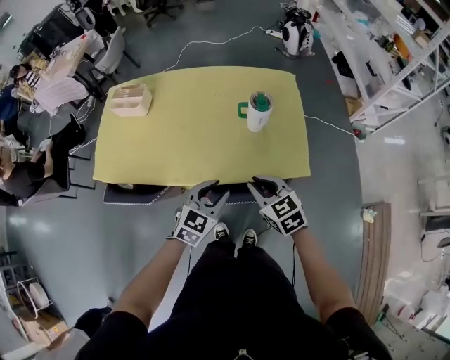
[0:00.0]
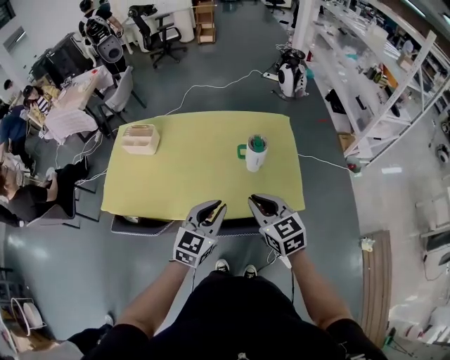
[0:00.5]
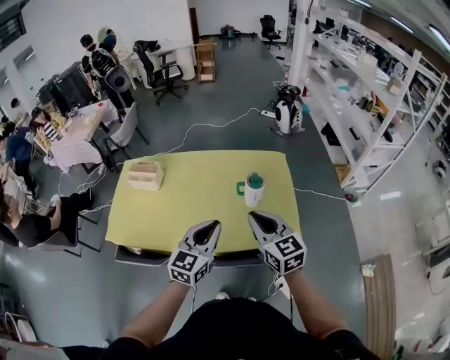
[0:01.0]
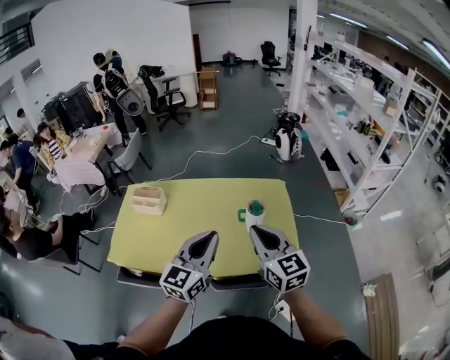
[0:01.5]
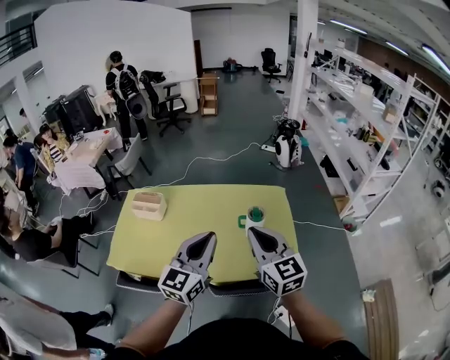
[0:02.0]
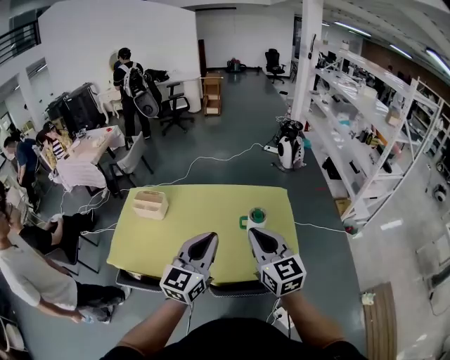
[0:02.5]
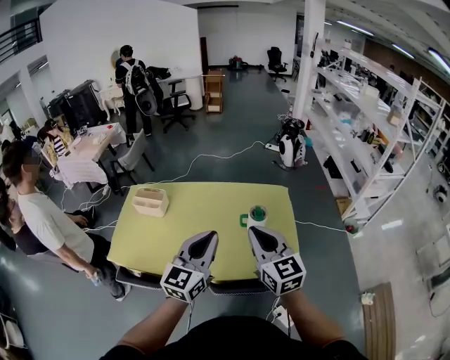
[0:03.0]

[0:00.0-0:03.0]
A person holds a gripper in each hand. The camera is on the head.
0:00.0 to 0:01.5: Both grippers move upward, some 25 cm. The left gripper points its fingers about 30 degrees further upward, and closes, while the right gripper rotates about 30 degrees.
0:01.5 to 0:03.0: The grippers make only small movements.

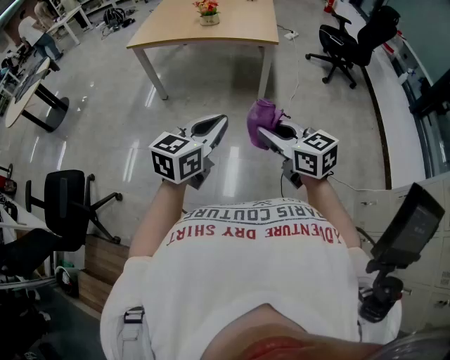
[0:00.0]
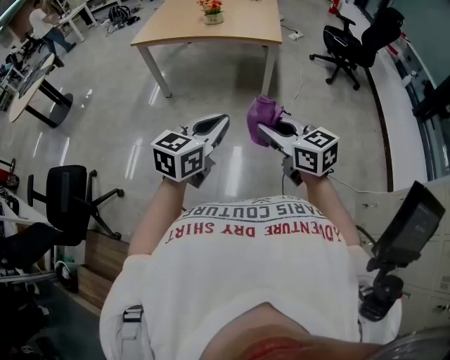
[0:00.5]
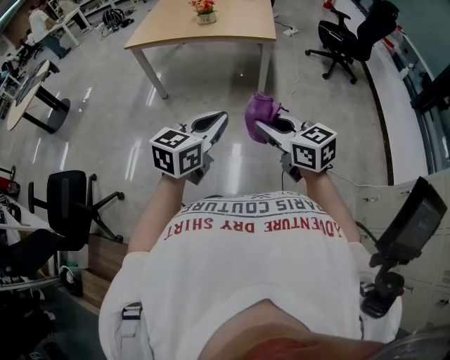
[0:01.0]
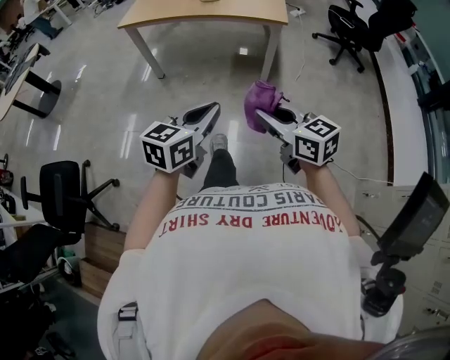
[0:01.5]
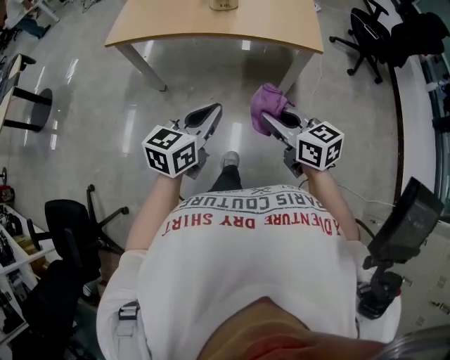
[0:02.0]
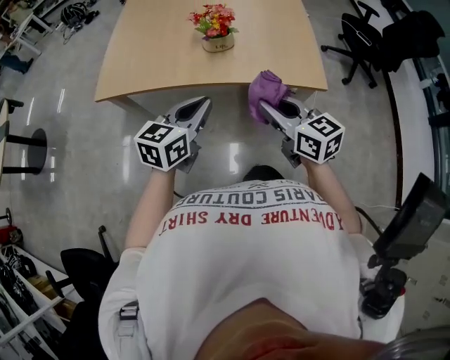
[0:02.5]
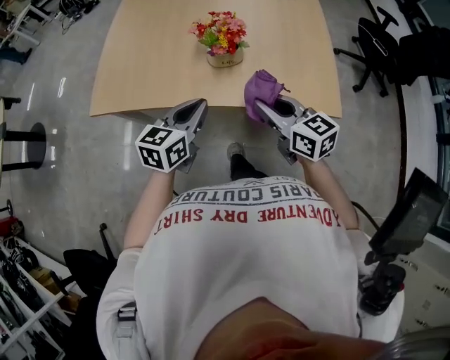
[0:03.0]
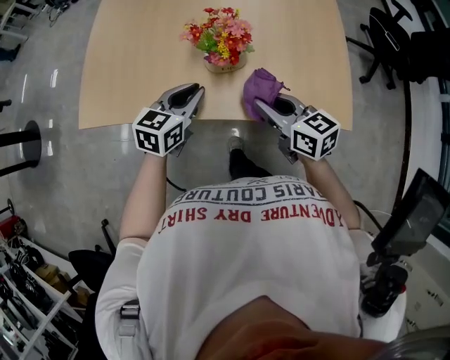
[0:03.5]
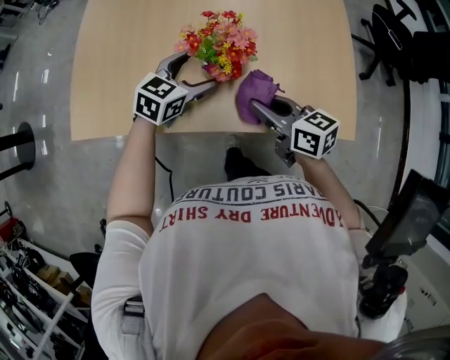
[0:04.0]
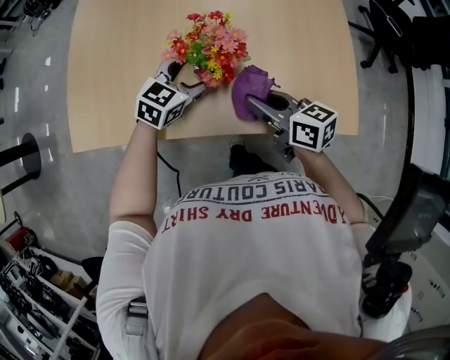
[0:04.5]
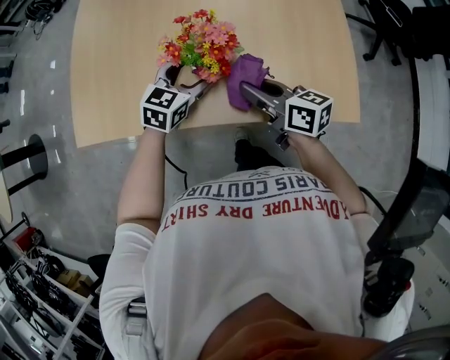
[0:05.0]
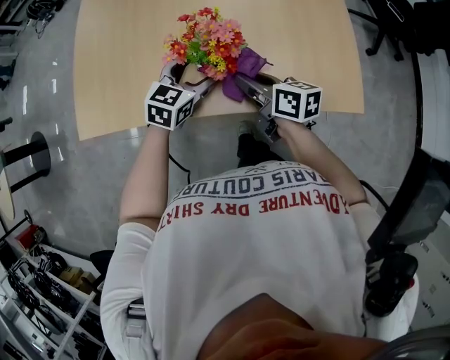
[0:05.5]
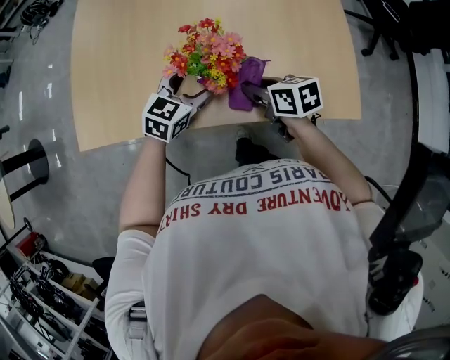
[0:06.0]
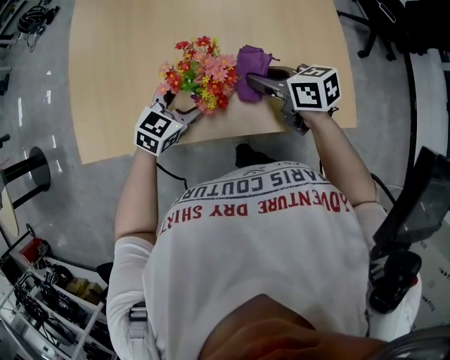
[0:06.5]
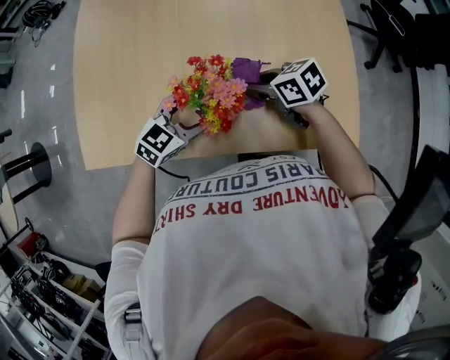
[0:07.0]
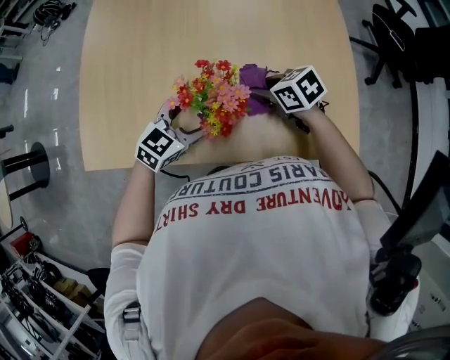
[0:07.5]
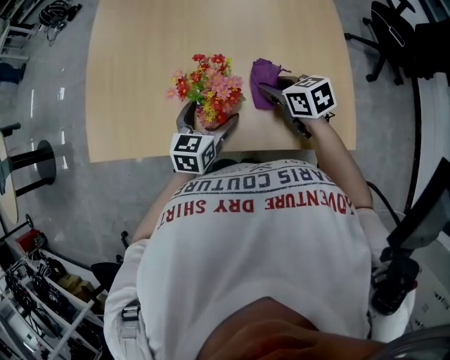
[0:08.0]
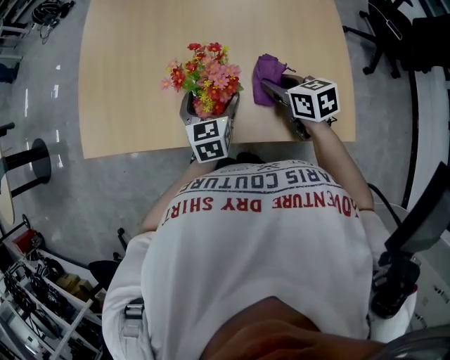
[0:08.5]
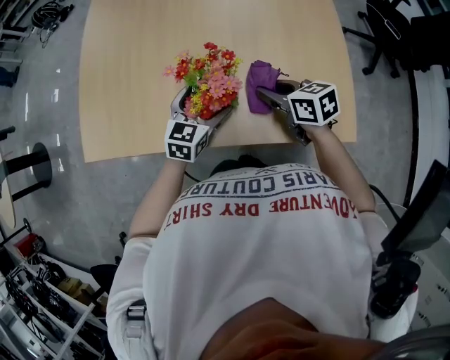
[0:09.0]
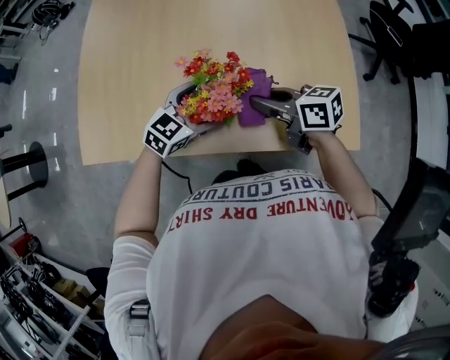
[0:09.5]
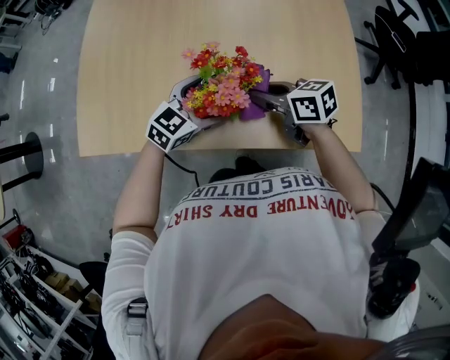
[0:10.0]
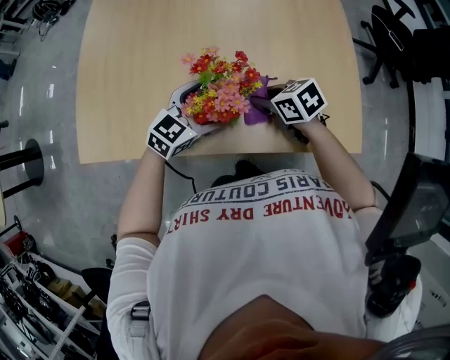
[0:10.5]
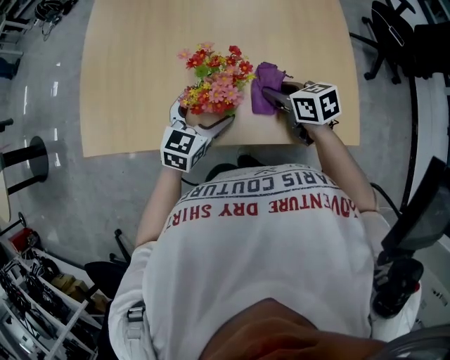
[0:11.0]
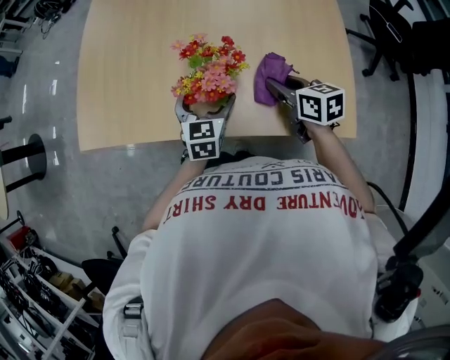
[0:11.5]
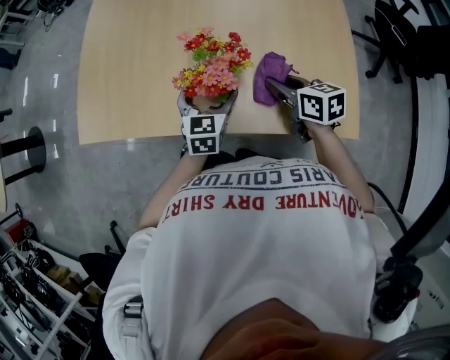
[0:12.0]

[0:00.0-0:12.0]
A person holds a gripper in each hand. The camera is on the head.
0:00.0 to 0:02.0: The pair of grippers is taken forward, approximately 50 cm.
0:02.0 to 0:04.0: Both grippers are carried forward, some 60 cm. The left gripper rotates approximately 20 degrees, and opens.
0:04.0 to 0:06.0: The right gripper heads downward, covering approximately 5 cm.
0:06.0 to 0:08.0: The right gripper moves approximately 10 cm; the left gripper turns by about 20 degrees.
0:08.0 to 0:10.0: The left gripper swivels roughly 30 degrees, while the right gripper is displaced to the left by roughly 5 cm.
0:10.0 to 0:12.0: The left gripper rotates some 40 degrees, while the right gripper shifts by about 5 cm.

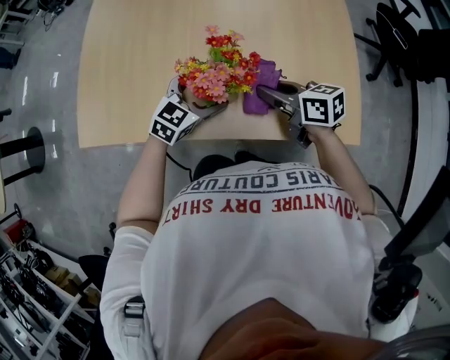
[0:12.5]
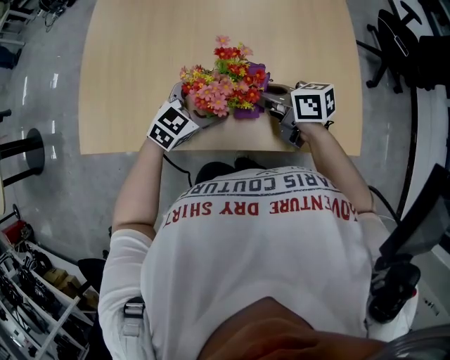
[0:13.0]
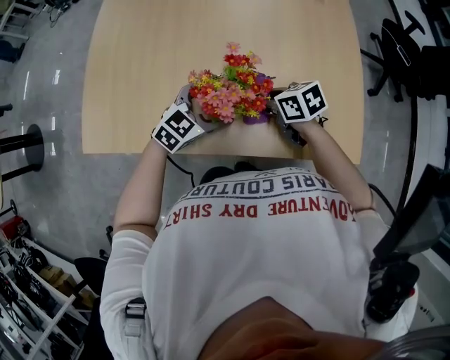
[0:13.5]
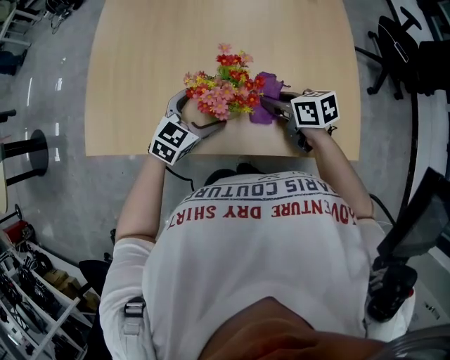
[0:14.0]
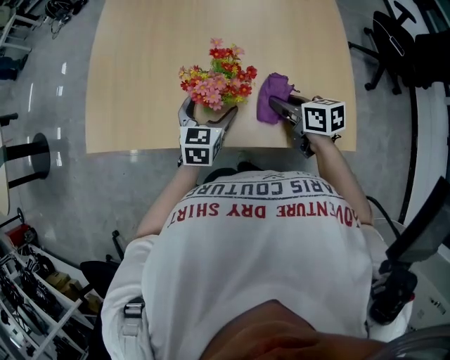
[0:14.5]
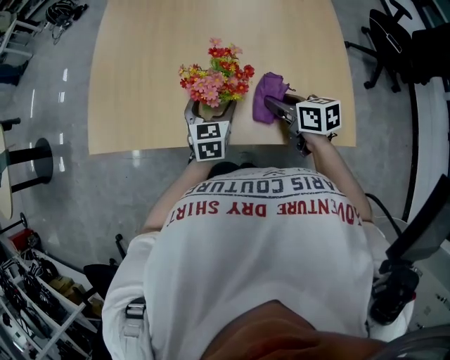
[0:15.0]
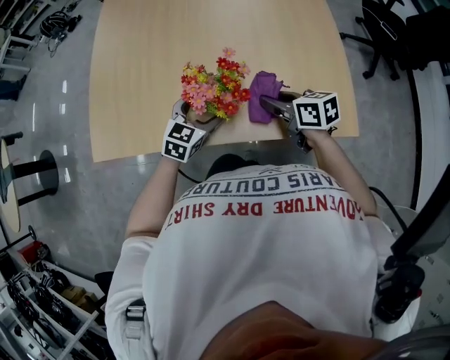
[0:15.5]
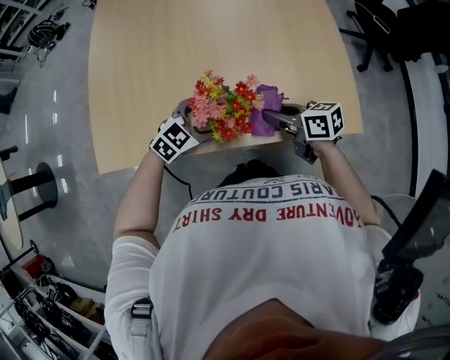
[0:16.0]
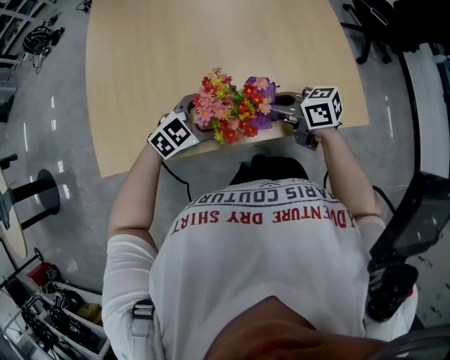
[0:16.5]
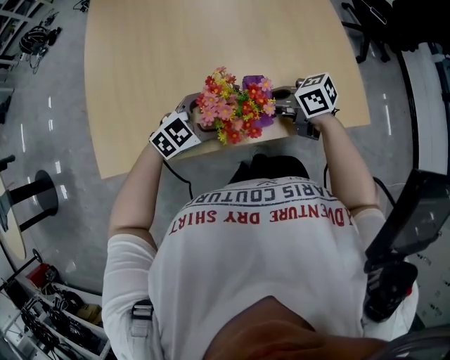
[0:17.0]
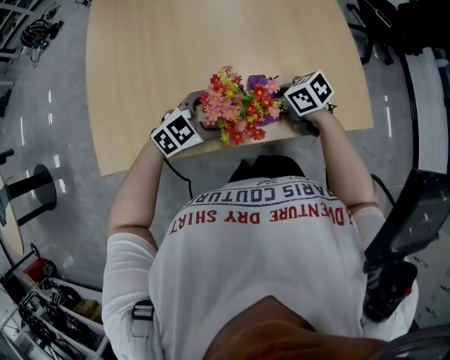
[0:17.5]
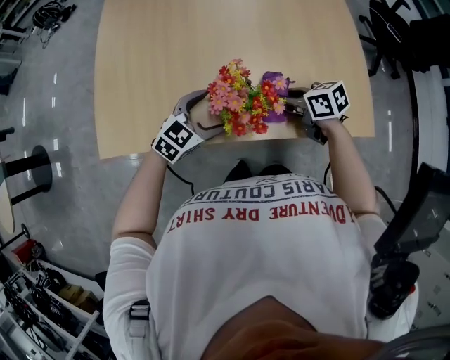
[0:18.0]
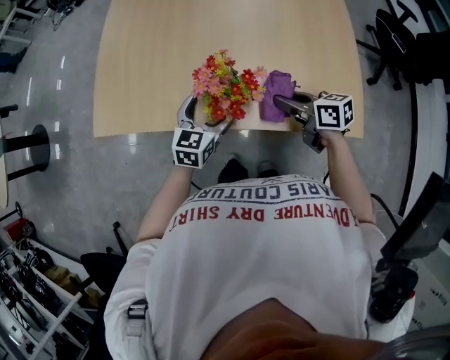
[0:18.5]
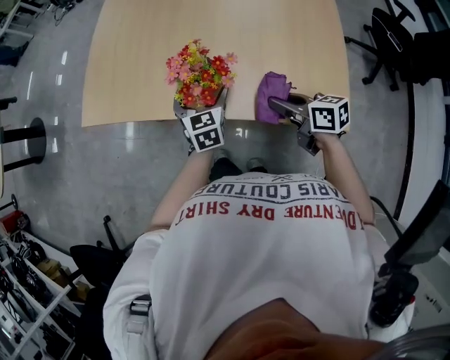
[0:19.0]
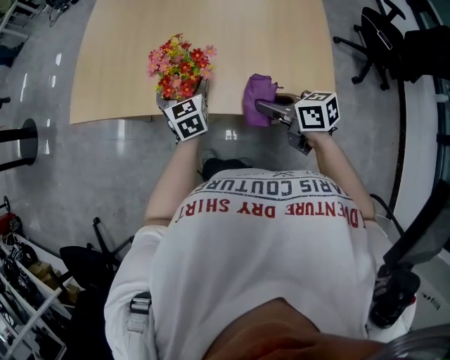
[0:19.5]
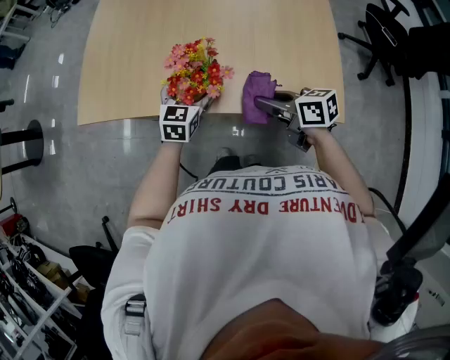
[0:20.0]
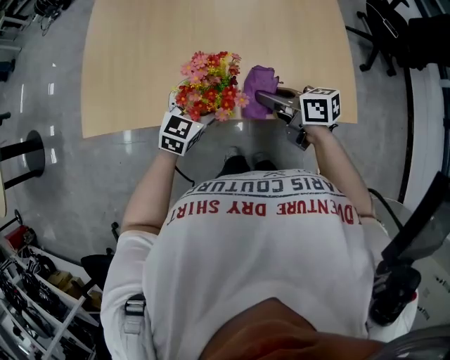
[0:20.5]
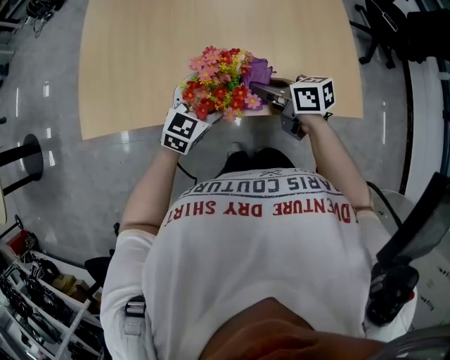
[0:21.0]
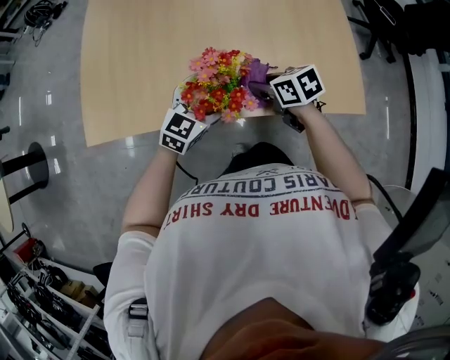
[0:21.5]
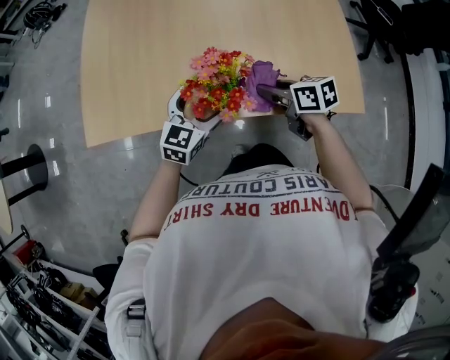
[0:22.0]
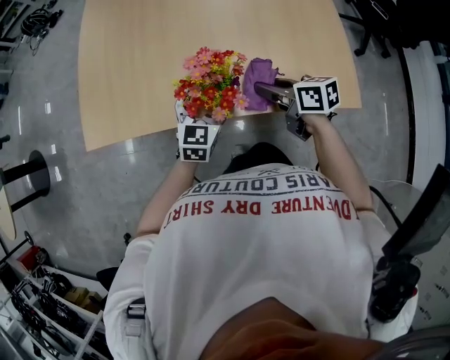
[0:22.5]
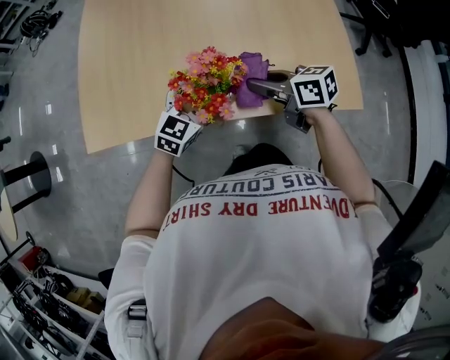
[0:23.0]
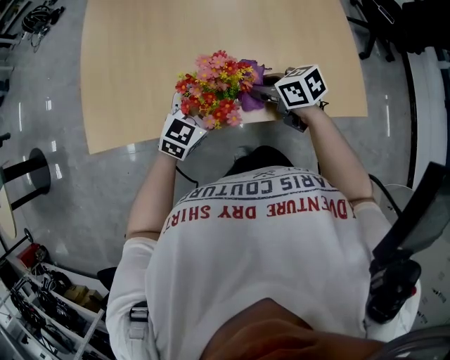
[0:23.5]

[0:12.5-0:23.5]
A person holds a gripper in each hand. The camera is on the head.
0:12.5 to 0:14.5: The right gripper shifts by some 5 cm. Meanwhile the left gripper turns by some 30 degrees.
0:14.5 to 0:16.0: The right gripper moves some 10 cm. Meanwhile the left gripper moves roughly 5 cm, and changes its angle by approximately 50 degrees.
0:16.0 to 0:18.0: The right gripper ends up roughly 5 cm from where it was.
0:18.0 to 0:20.0: The right gripper ends up approximately 15 cm from where it was, while the left gripper moves some 5 cm, and rotates approximately 40 degrees.
0:20.0 to 0:21.5: The left gripper rotates approximately 30 degrees. Meanwhile the right gripper is displaced forward, to the left and downward by about 15 cm, and rotates some 20 degrees.

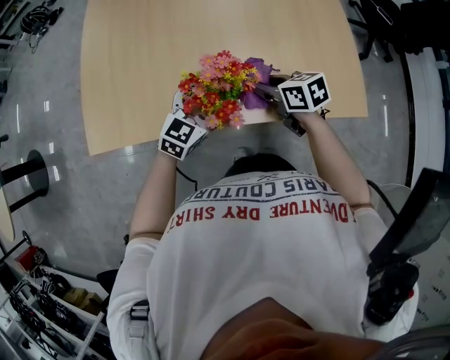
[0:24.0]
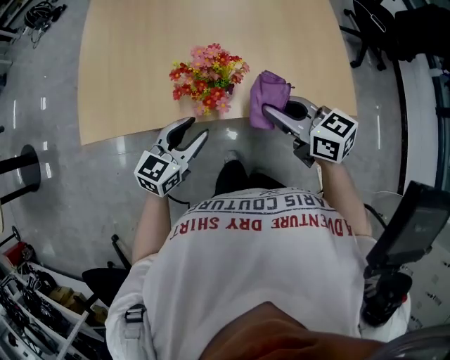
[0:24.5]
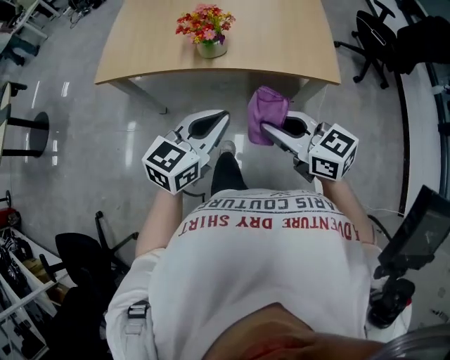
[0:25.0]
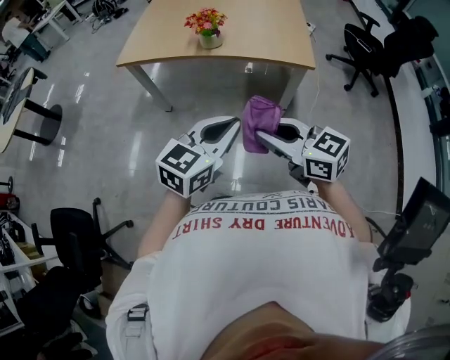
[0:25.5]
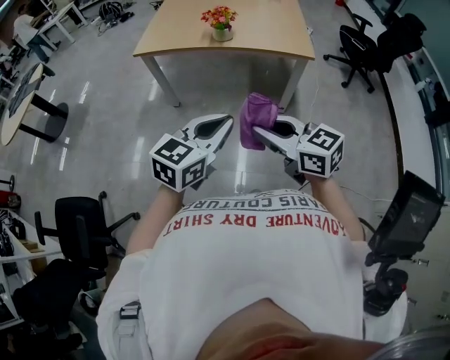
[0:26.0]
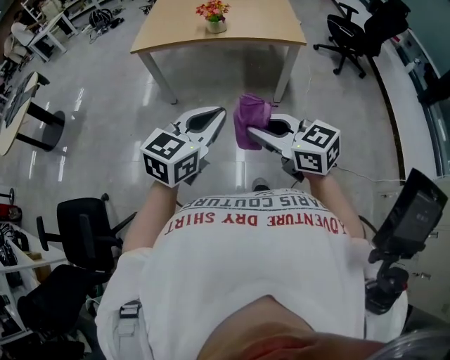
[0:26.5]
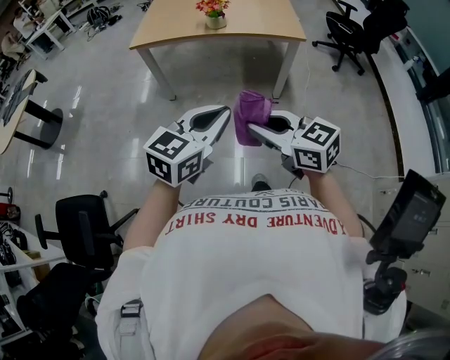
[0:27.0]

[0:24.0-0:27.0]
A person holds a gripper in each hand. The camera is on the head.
0:24.0 to 0:25.5: The two grippers travel together, backward, about 70 cm. The left gripper closes its fingers, while the right gripper swivels roughly 40 degrees.
0:25.5 to 0:27.0: The two grippers go approximately 25 cm backward and to the left.
